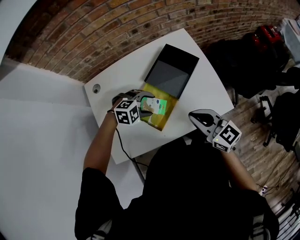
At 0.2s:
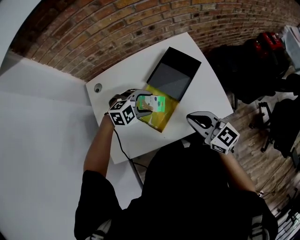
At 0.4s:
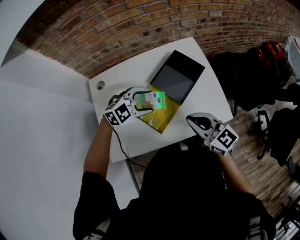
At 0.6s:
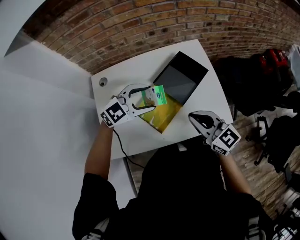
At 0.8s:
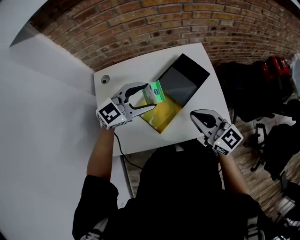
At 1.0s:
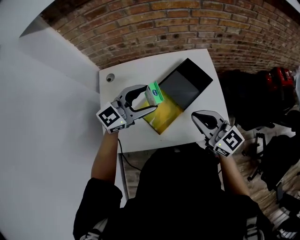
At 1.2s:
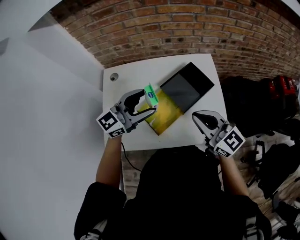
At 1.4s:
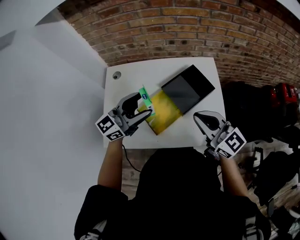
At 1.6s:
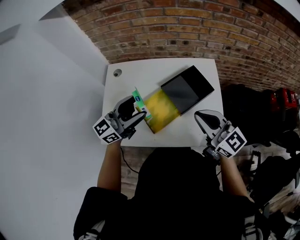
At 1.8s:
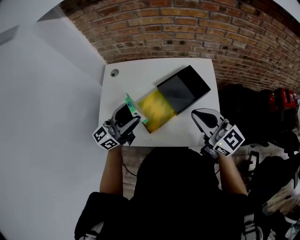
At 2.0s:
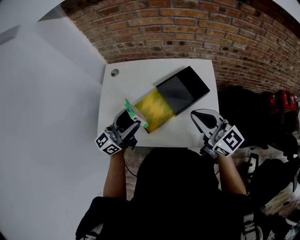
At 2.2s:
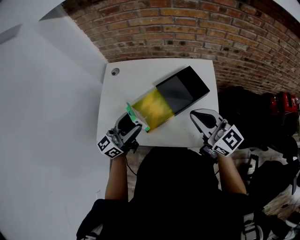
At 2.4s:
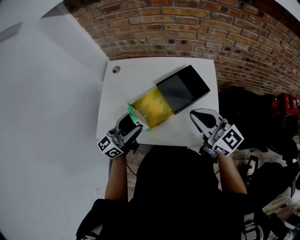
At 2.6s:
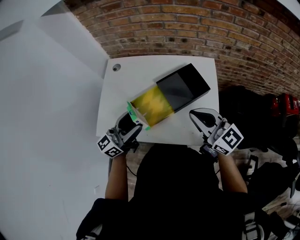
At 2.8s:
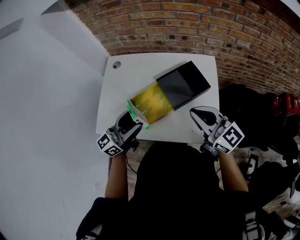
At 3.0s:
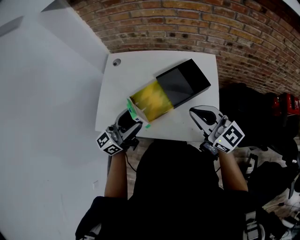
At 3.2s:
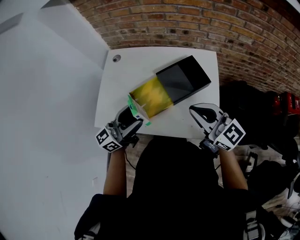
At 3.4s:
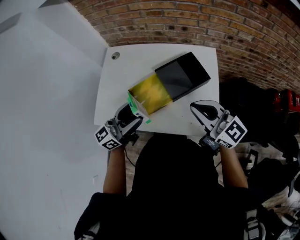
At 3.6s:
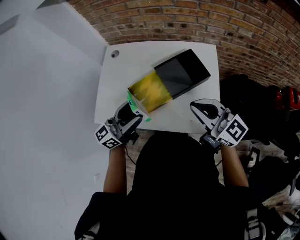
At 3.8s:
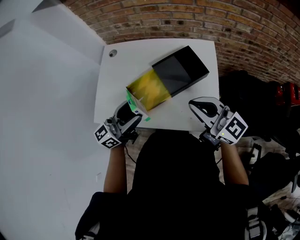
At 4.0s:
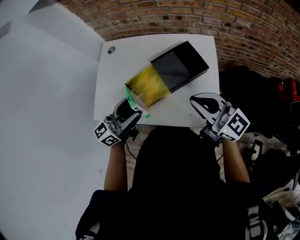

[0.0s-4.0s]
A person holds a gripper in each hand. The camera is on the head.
0.0s to 1.4s: The left gripper moves upward, approximately 25 cm, and angles its fingers upward, by about 70 degrees, while the right gripper travels upward by about 10 cm, and changes its angle by approximately 20 degrees.
1.4s to 2.6s: The left gripper travels backward by roughly 10 cm, and rotates approximately 20 degrees.
2.6s to 4.0s: There are only small adjustments of the grippers.

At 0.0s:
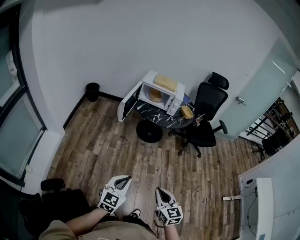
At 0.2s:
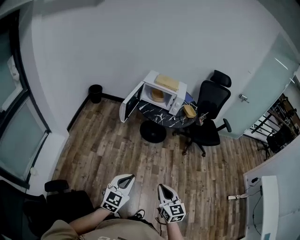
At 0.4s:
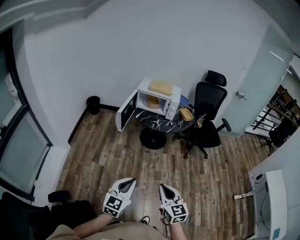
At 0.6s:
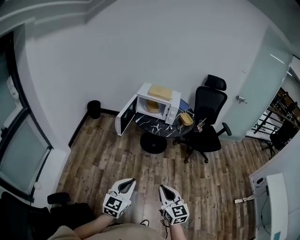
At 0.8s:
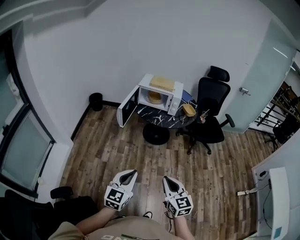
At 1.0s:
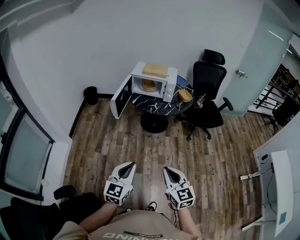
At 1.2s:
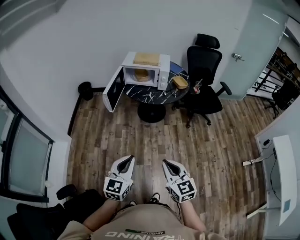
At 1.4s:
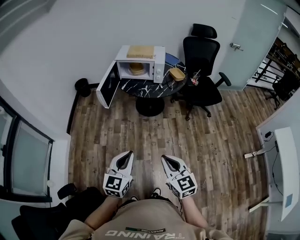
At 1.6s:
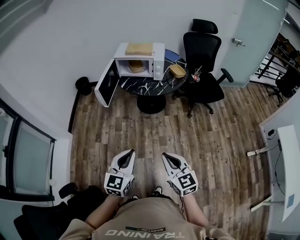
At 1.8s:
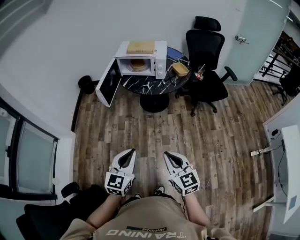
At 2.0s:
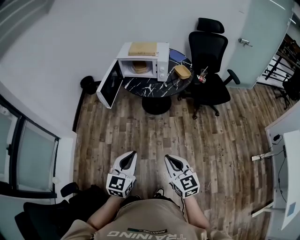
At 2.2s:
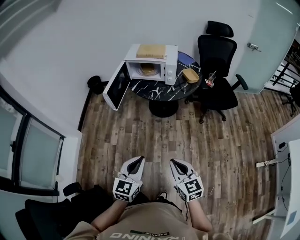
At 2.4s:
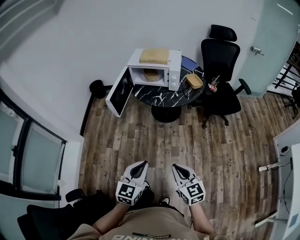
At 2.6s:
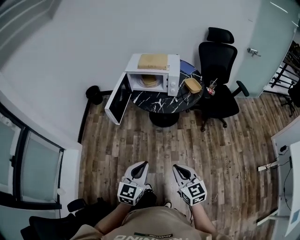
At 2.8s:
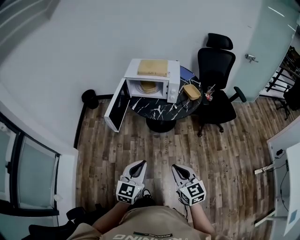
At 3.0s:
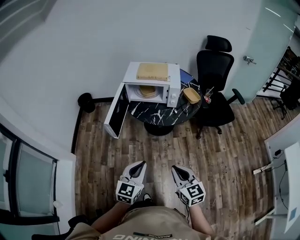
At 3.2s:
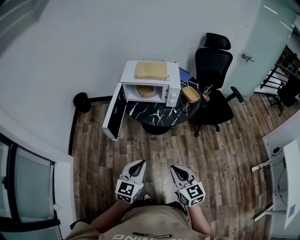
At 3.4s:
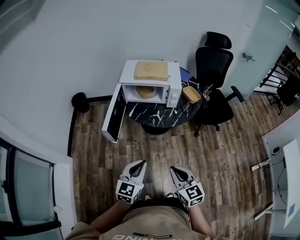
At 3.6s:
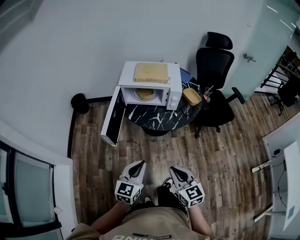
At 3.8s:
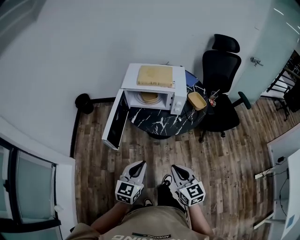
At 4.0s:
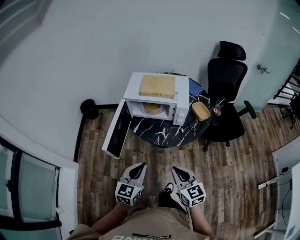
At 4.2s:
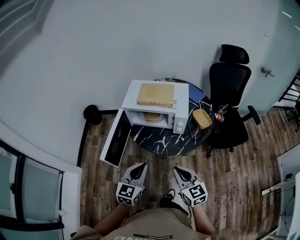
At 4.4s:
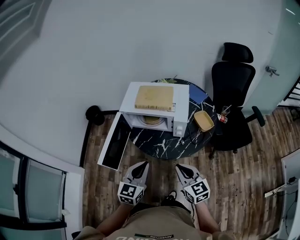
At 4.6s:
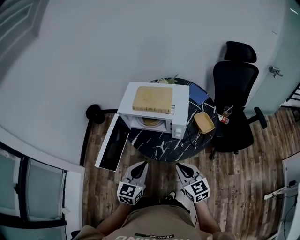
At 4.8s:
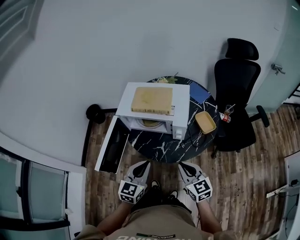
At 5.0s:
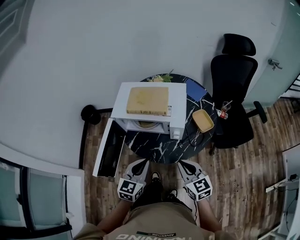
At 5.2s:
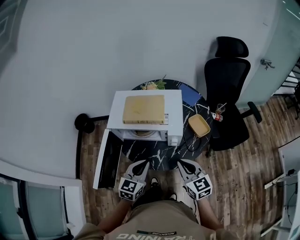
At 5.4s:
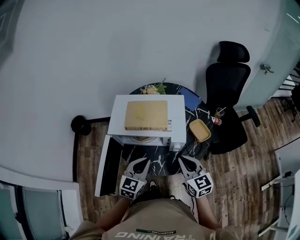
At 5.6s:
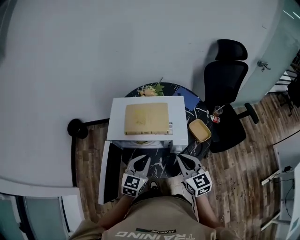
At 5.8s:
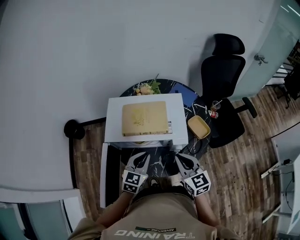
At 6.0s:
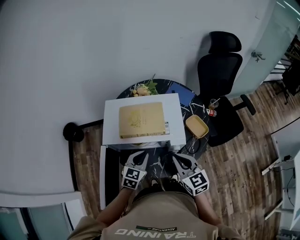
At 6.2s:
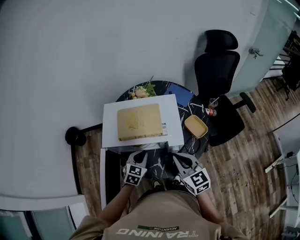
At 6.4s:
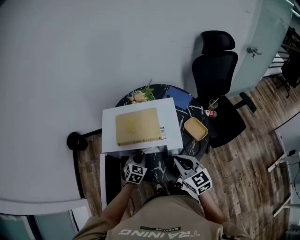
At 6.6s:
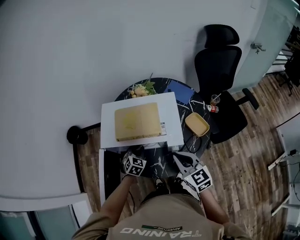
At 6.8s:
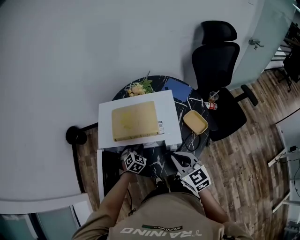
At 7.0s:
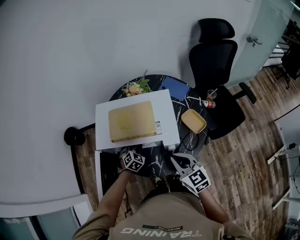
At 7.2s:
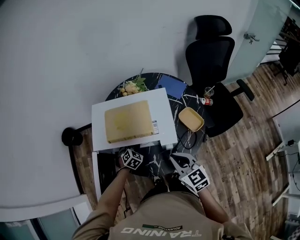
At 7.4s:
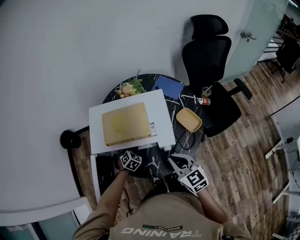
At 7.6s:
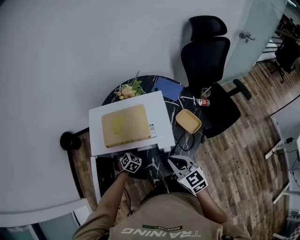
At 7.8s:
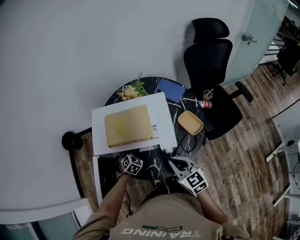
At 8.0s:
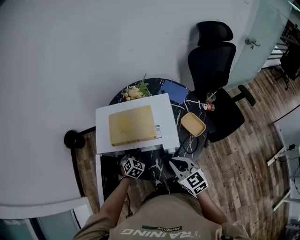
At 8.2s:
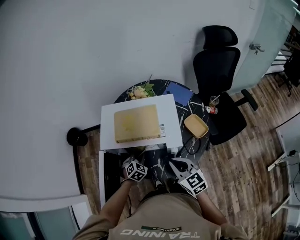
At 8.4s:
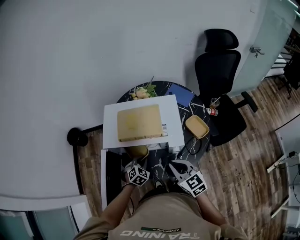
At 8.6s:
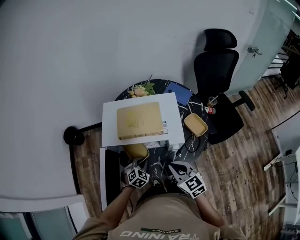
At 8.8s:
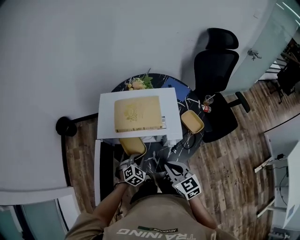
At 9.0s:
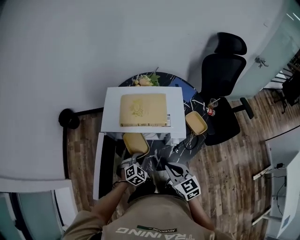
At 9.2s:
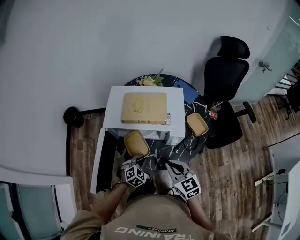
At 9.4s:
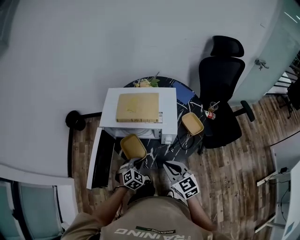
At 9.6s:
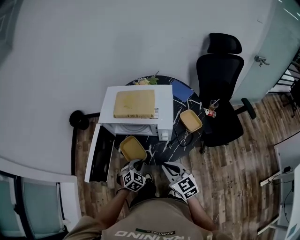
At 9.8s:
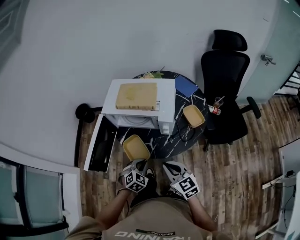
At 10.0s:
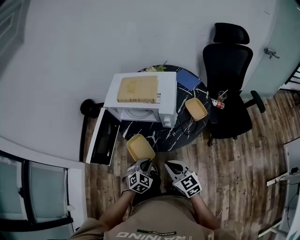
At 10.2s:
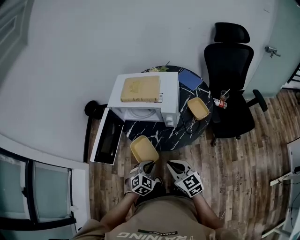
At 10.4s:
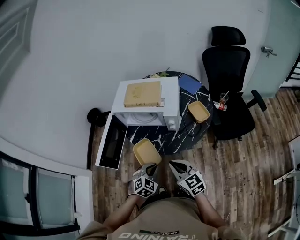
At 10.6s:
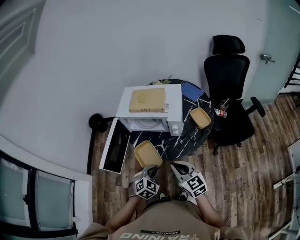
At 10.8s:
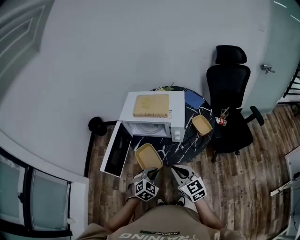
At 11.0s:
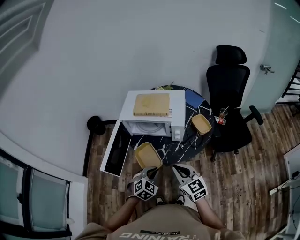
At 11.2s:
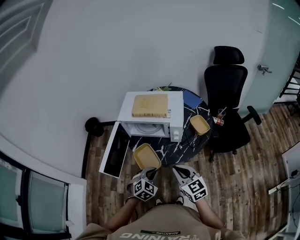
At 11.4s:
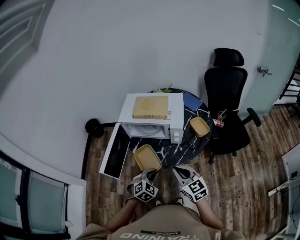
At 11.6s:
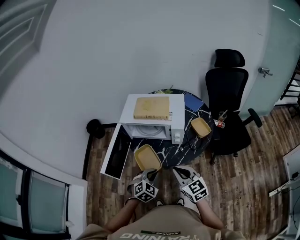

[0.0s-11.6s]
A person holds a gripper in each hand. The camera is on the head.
0.0s to 1.4s: The two grippers go roughly 10 cm to the right and forward.
1.4s to 2.8s: Both grippers move forward, some 15 cm.
2.8s to 4.4s: The grippers both shift forward by roughly 30 cm.
4.4s to 5.8s: Both grippers move forward, approximately 20 cm.
5.8s to 7.2s: The left gripper travels downward and forward by roughly 20 cm, and turns by about 40 degrees.
7.2s to 8.8s: The left gripper shifts roughly 10 cm backward. The right gripper is displaced to the left by approximately 5 cm.
8.8s to 10.2s: The two grippers go roughly 20 cm backward.
10.2s to 11.6s: The right gripper moves upward, some 5 cm. The left gripper shifts by approximately 5 cm.

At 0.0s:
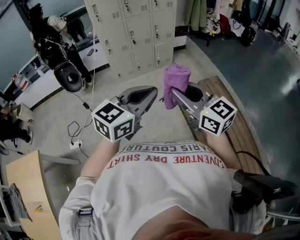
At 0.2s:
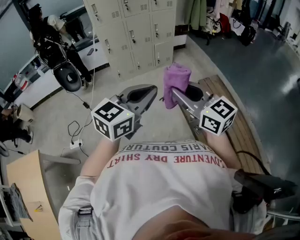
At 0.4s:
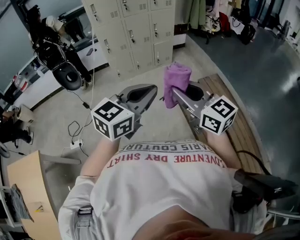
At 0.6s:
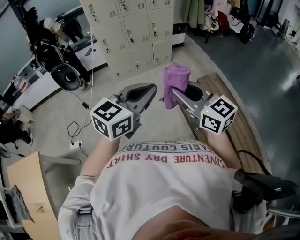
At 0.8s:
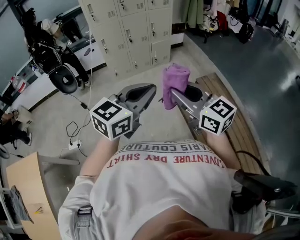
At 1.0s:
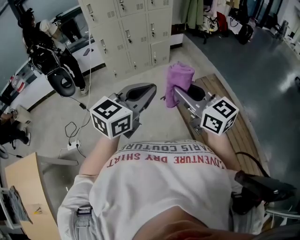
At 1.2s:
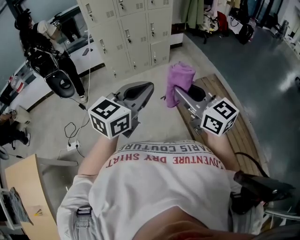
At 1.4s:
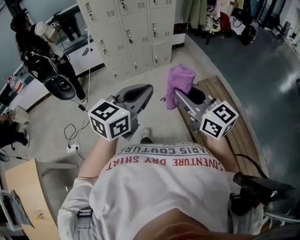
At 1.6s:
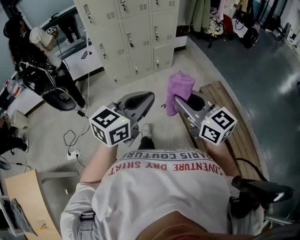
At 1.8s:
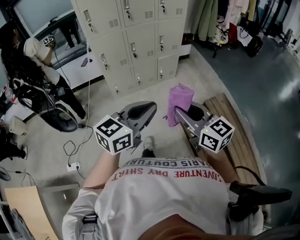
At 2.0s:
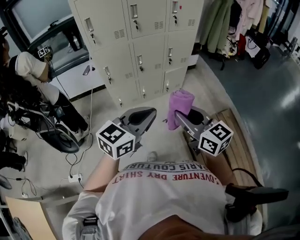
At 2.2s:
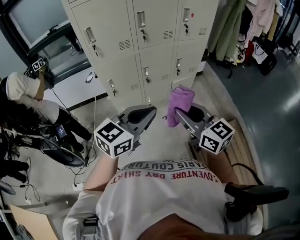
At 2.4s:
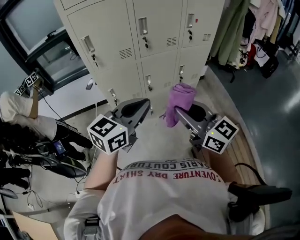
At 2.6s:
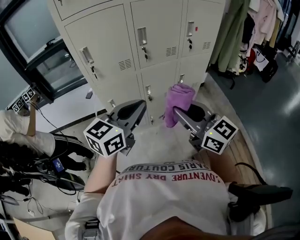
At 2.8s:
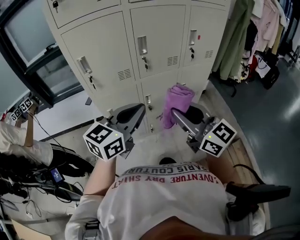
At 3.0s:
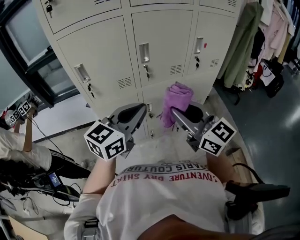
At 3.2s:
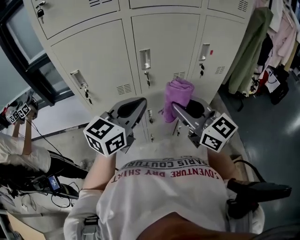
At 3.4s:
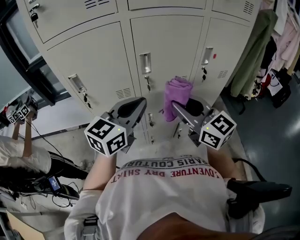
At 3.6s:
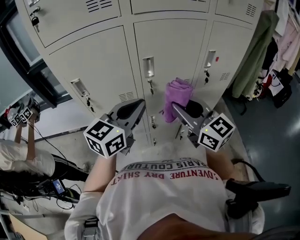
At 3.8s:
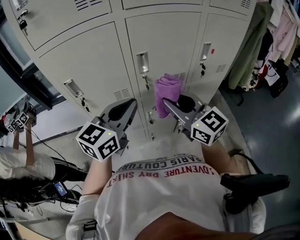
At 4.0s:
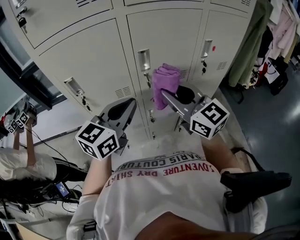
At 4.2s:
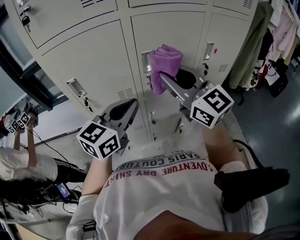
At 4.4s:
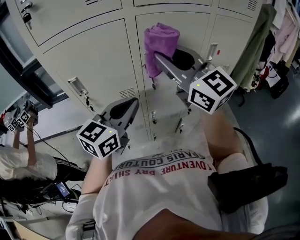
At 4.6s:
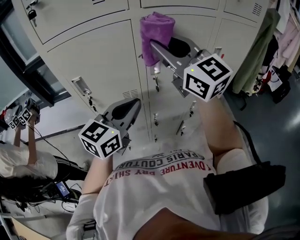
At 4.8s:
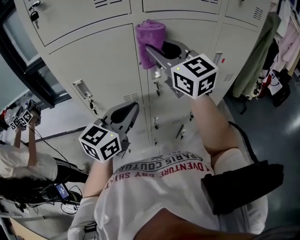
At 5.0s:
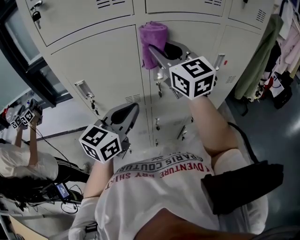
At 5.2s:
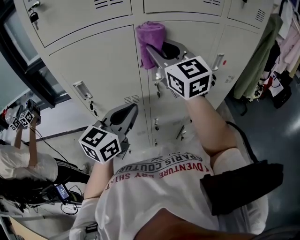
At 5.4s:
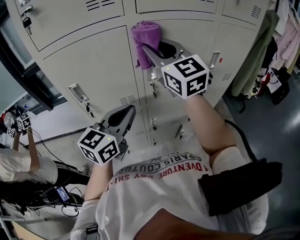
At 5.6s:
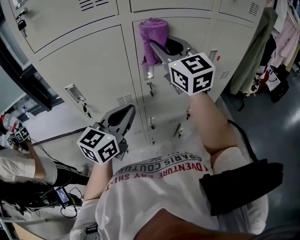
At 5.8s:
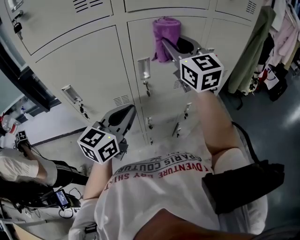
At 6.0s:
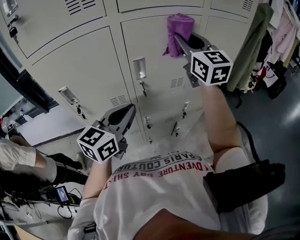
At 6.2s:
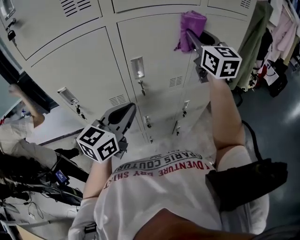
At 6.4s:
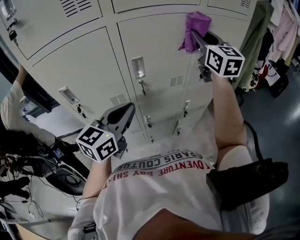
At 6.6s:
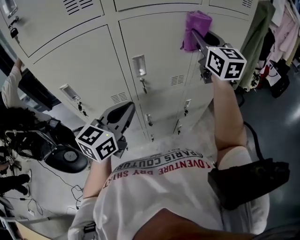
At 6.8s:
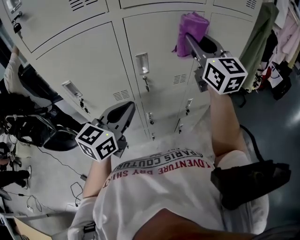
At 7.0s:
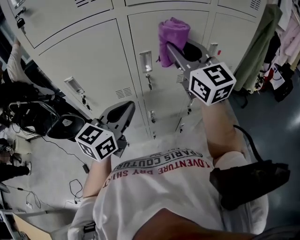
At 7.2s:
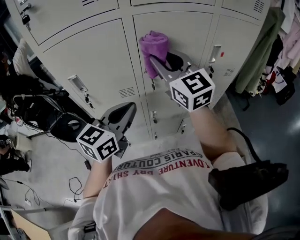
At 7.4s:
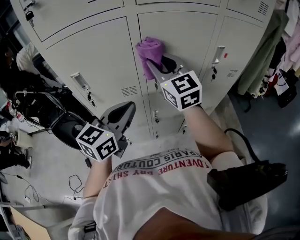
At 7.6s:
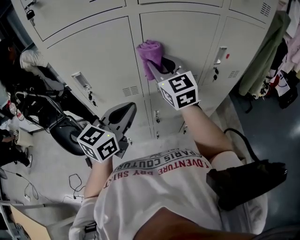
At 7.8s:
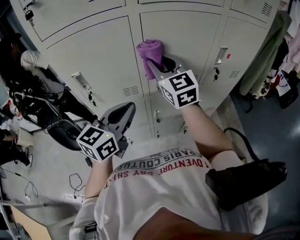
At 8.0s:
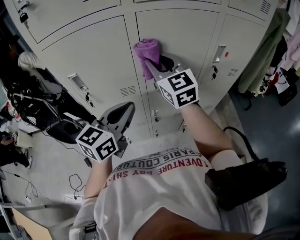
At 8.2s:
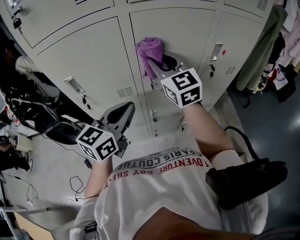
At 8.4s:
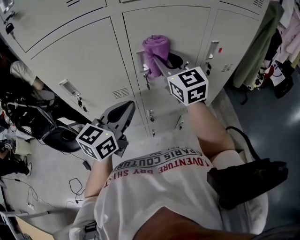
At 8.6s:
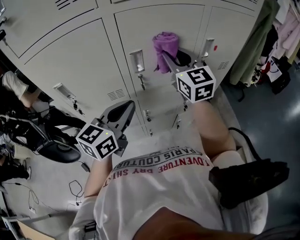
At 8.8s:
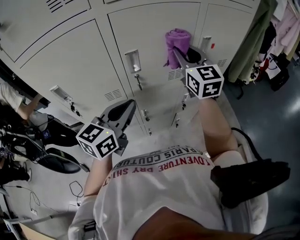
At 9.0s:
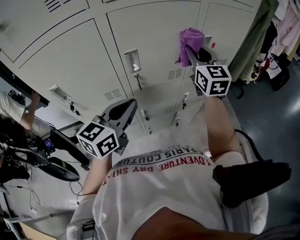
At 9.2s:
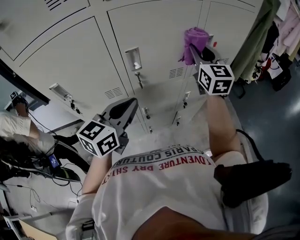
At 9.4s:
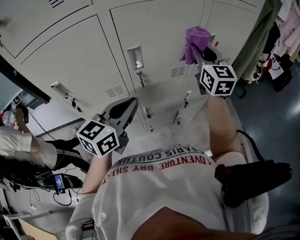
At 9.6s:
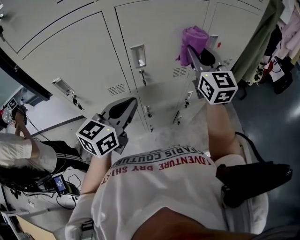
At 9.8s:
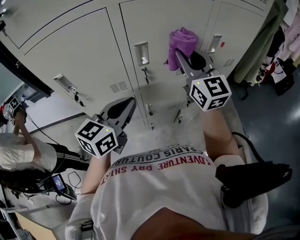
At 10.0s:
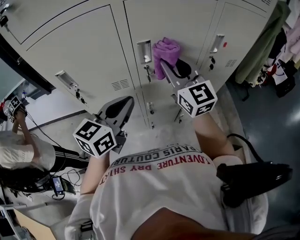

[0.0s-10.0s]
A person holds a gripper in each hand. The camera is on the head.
0.0s to 1.4s: The grippers both shift forward by approximately 10 cm.
1.4s to 2.8s: The pair of grippers is taken forward, some 70 cm.
2.8s to 4.2s: Both grippers move forward, some 20 cm.
4.2s to 5.8s: The right gripper is displaced forward by roughly 15 cm.
5.8s to 7.2s: The right gripper moves backward, about 5 cm, and reaches roughly 15 cm to the right, then returns.
7.2s to 8.6s: The right gripper is displaced to the right, forward and downward by about 10 cm.
8.6s to 10.0s: The right gripper is displaced backward by about 5 cm, and reaches some 10 cm to the right, then returns.
